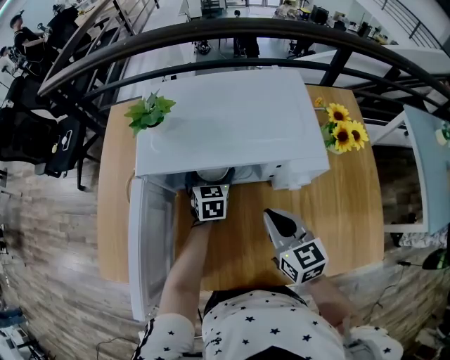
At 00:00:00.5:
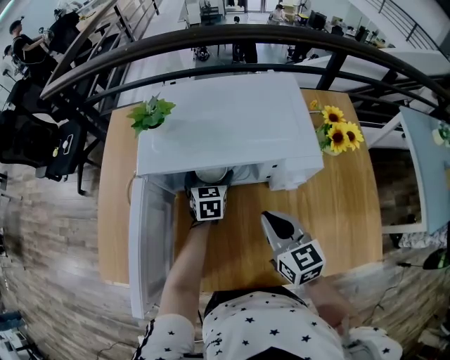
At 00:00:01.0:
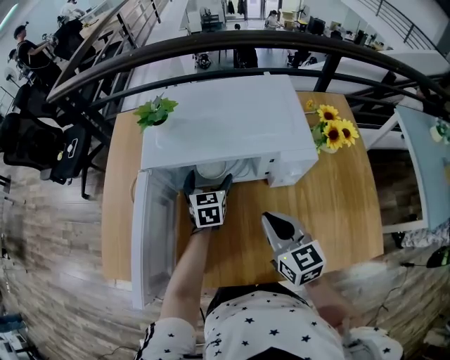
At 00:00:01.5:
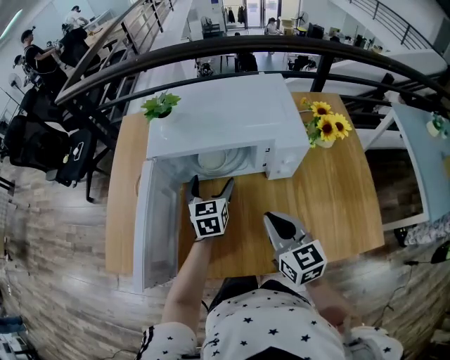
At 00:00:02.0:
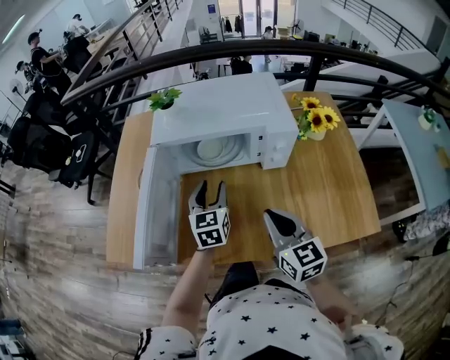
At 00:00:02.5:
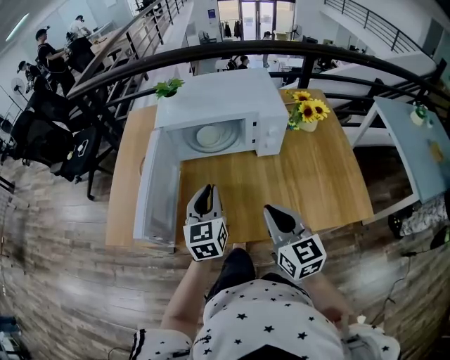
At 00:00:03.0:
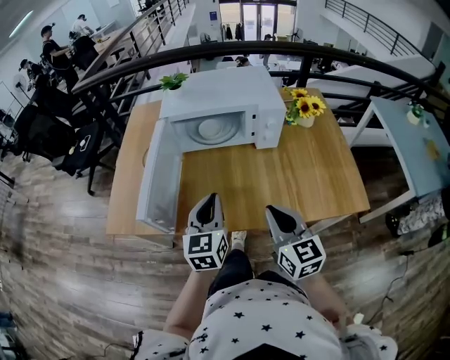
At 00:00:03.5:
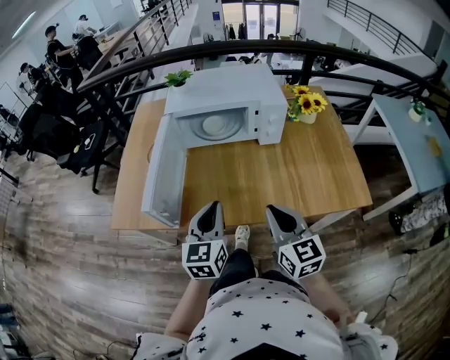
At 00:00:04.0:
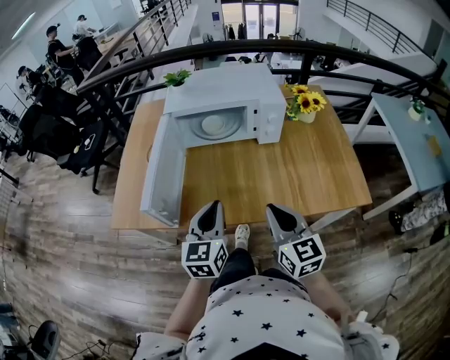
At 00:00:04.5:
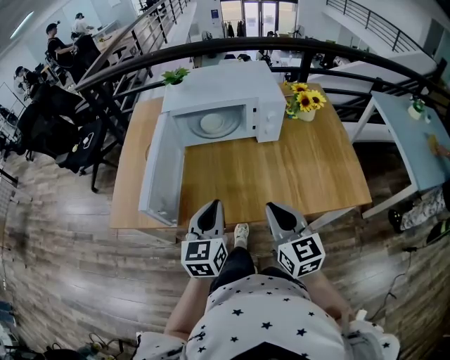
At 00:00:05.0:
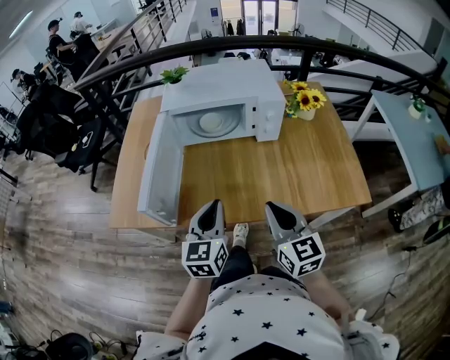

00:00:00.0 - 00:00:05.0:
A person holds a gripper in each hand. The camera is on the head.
00:00:00.0 - 00:00:02.5: The right gripper travels backward by some 20 cm, while the left gripper goes some 35 cm backward and upward, turns by approximately 20 degrees, and closes up.
00:00:02.5 - 00:00:05.0: The right gripper goes about 5 cm backward. The left gripper goes about 15 cm backward.

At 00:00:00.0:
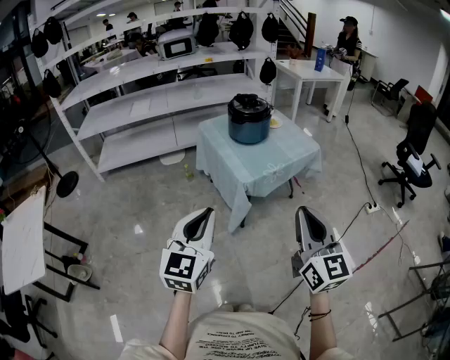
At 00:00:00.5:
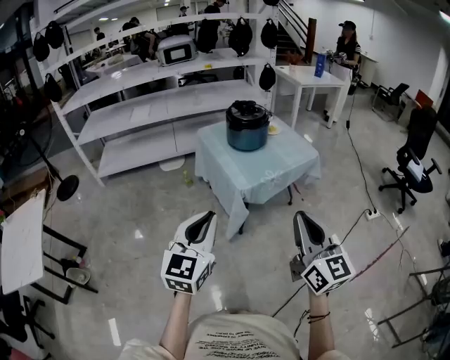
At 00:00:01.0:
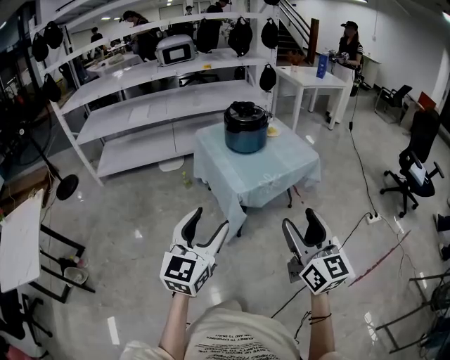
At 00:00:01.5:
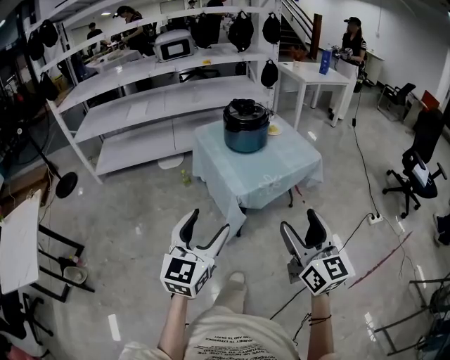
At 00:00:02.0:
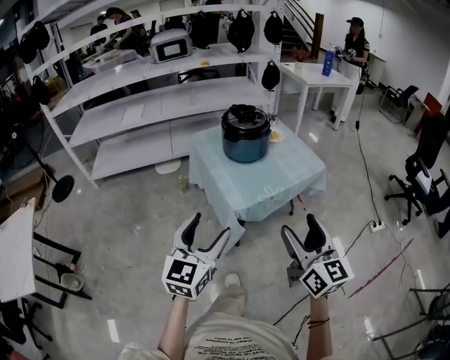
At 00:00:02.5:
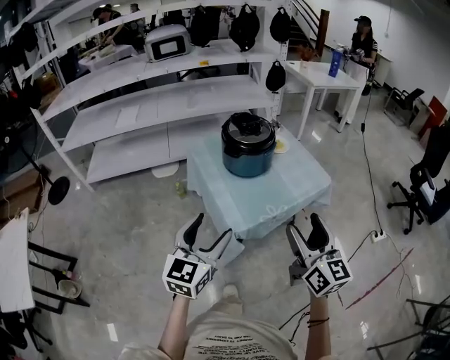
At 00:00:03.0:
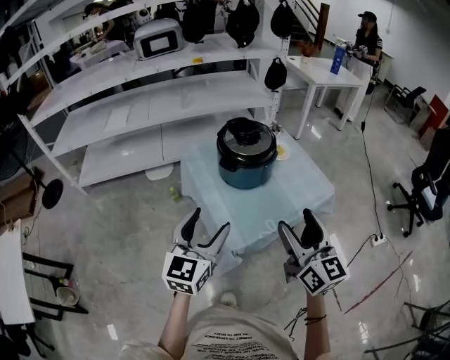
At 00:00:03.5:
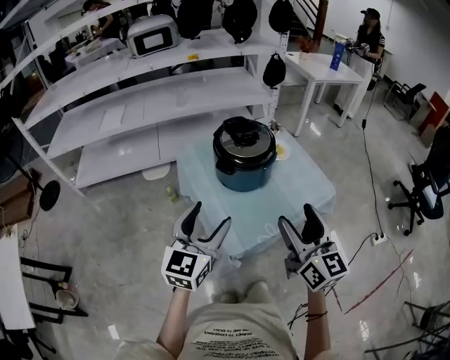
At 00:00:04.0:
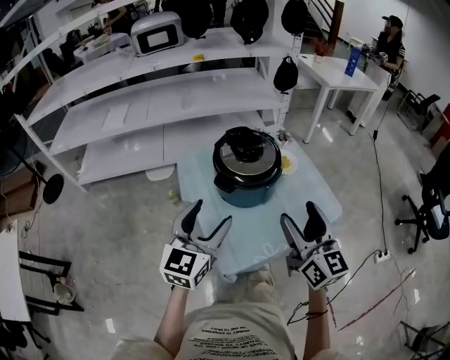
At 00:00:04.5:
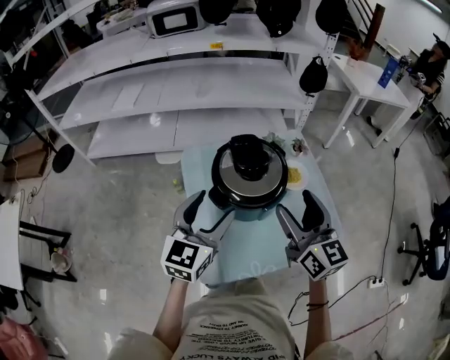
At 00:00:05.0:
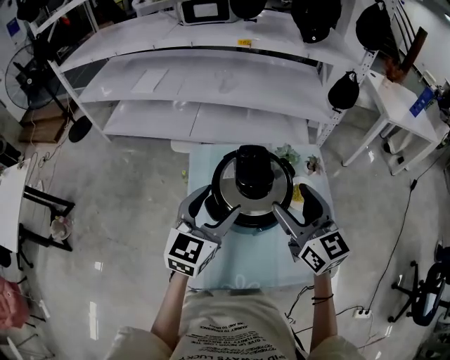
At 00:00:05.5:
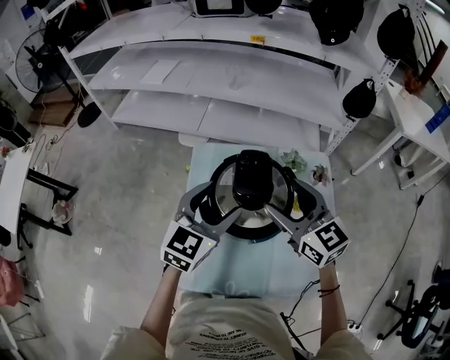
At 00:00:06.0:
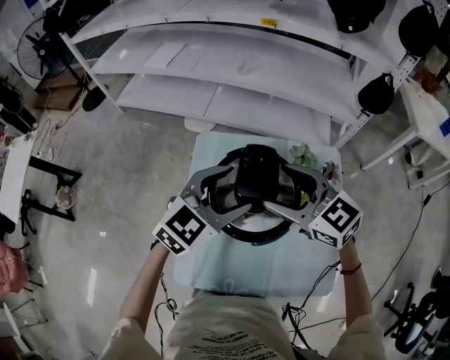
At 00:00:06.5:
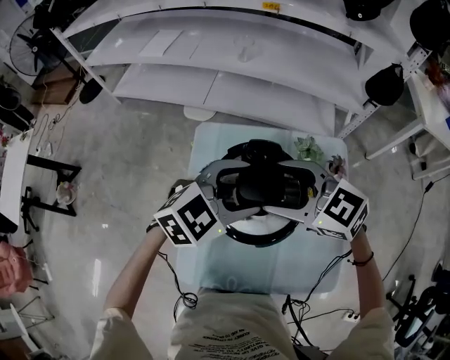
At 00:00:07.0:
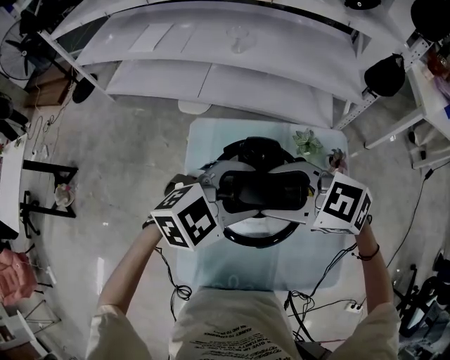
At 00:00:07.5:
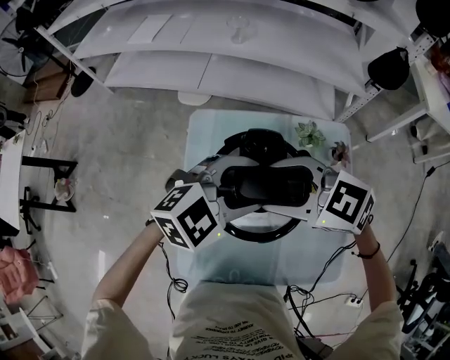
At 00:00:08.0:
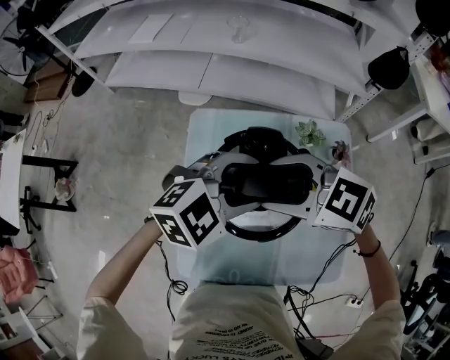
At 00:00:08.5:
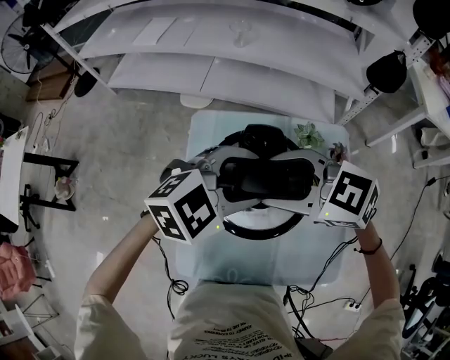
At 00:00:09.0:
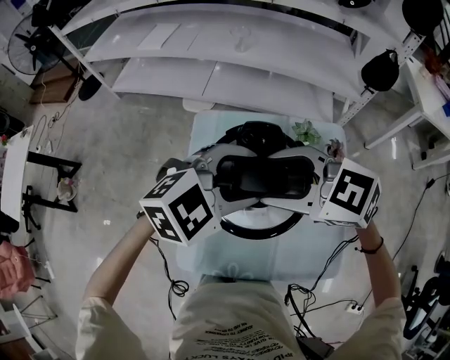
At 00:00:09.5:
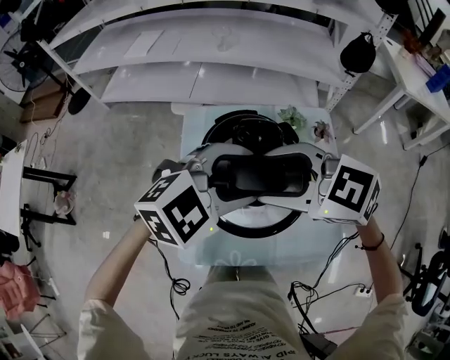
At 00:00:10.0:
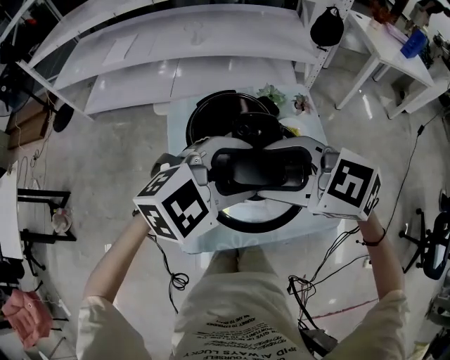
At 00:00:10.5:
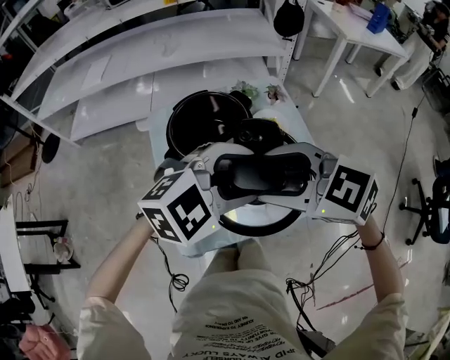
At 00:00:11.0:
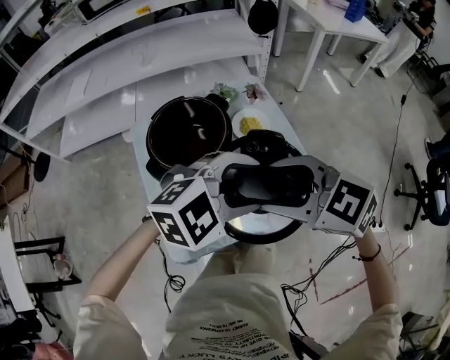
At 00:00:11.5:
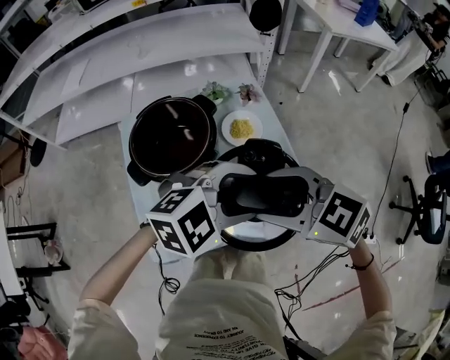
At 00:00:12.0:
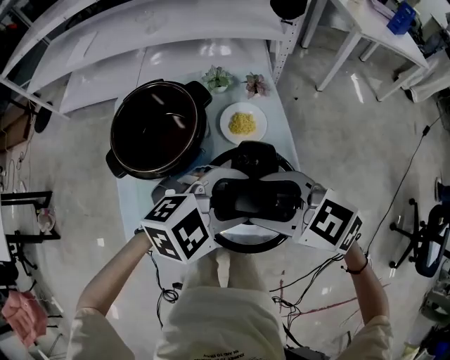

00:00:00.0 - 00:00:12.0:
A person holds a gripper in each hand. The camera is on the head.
00:00:00.0 - 00:00:02.0: The grippers both shift forward by about 15 cm. The left gripper opens up. Meanwhile the right gripper opens its fingers.
00:00:02.0 - 00:00:04.0: Both grippers move forward, roughly 35 cm.
00:00:04.0 - 00:00:06.0: The right gripper moves about 30 cm, and turns by approximately 70 degrees. The left gripper moves roughly 25 cm.
00:00:06.0 - 00:00:08.0: The left gripper rotates about 30 degrees; the right gripper turns by approximately 20 degrees.
00:00:08.0 - 00:00:10.0: The right gripper shifts by approximately 15 cm, while the left gripper changes place by some 15 cm.
00:00:10.0 - 00:00:12.0: The right gripper ends up approximately 20 cm from where it was. The left gripper ends up some 20 cm from where it was.

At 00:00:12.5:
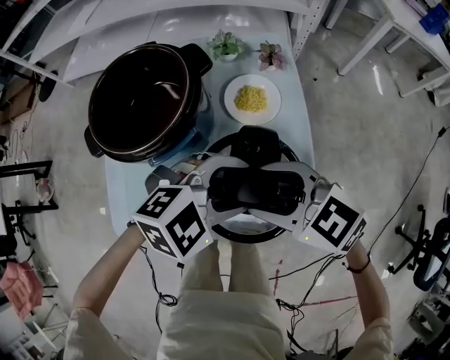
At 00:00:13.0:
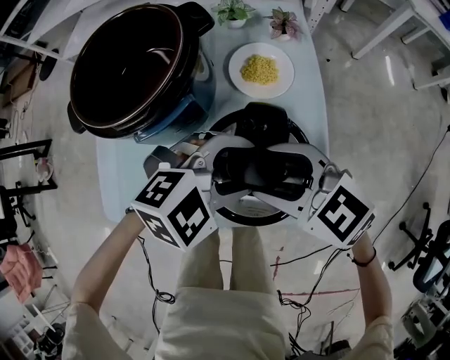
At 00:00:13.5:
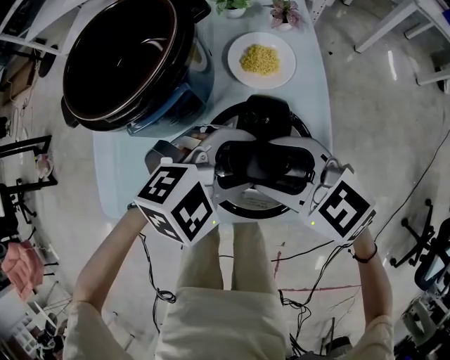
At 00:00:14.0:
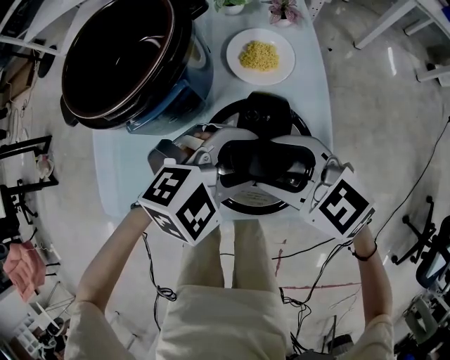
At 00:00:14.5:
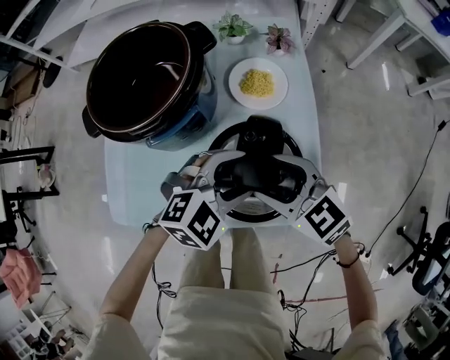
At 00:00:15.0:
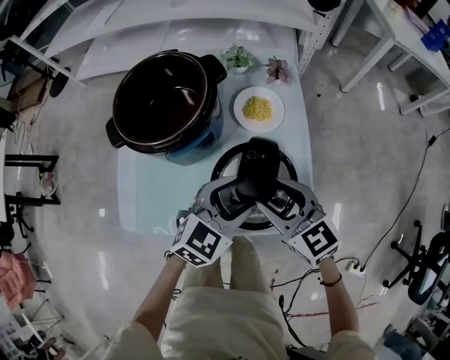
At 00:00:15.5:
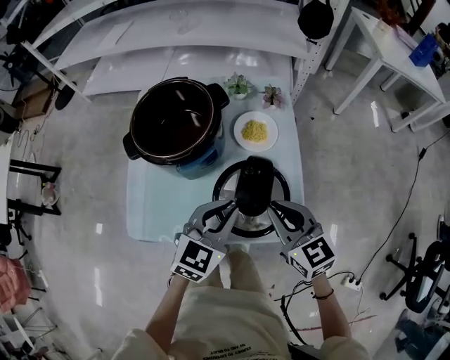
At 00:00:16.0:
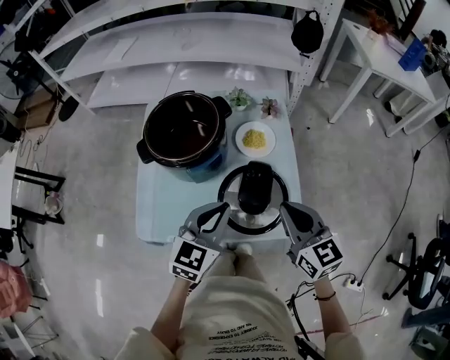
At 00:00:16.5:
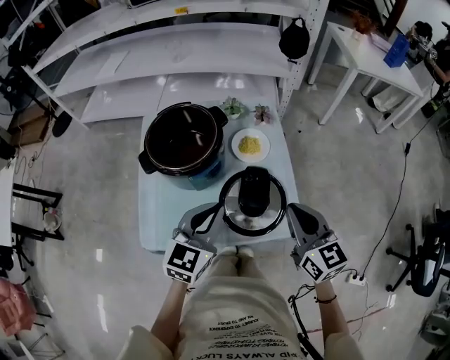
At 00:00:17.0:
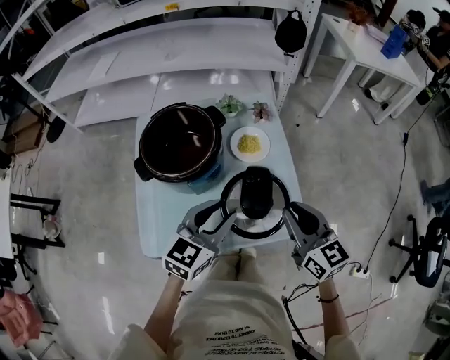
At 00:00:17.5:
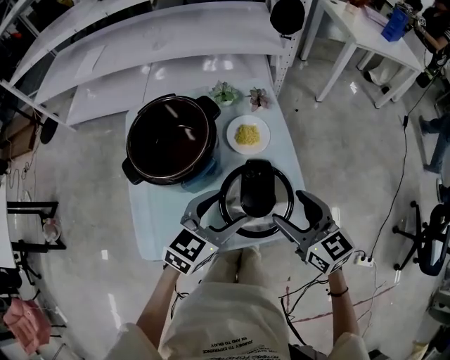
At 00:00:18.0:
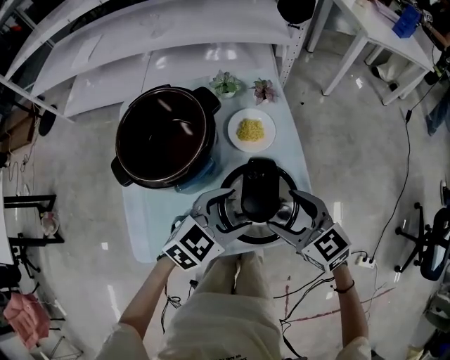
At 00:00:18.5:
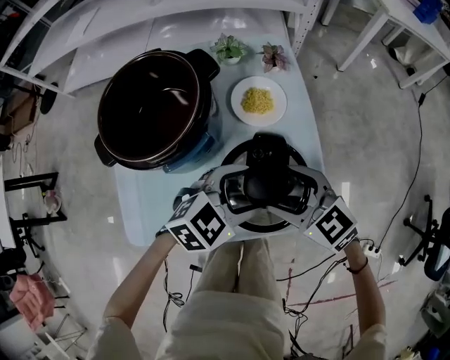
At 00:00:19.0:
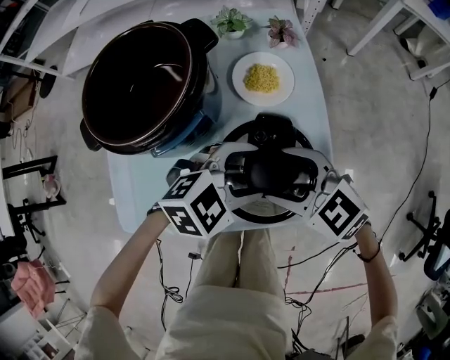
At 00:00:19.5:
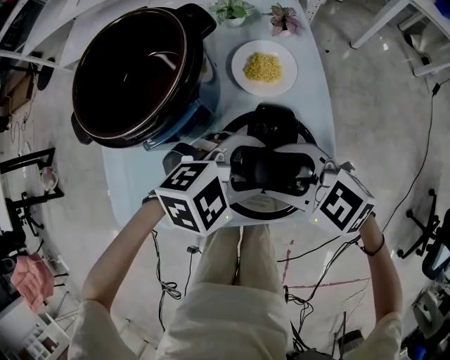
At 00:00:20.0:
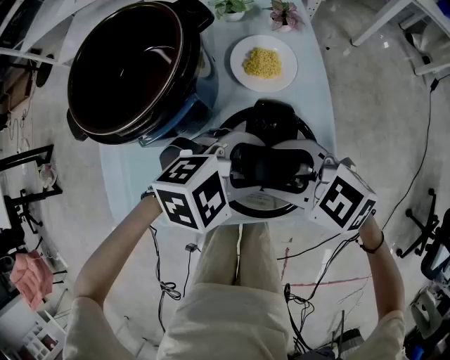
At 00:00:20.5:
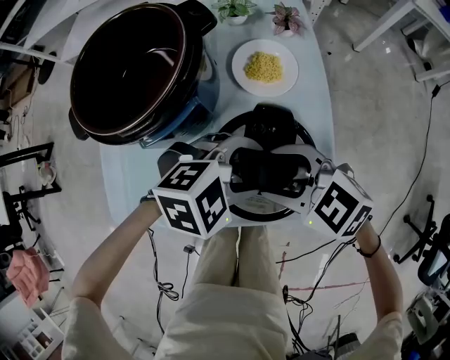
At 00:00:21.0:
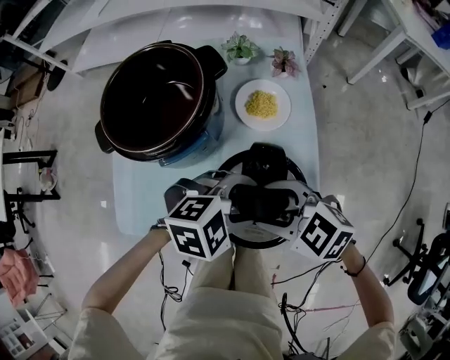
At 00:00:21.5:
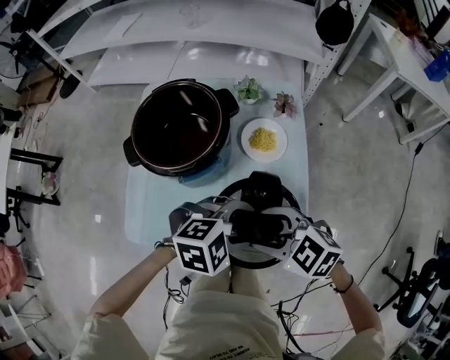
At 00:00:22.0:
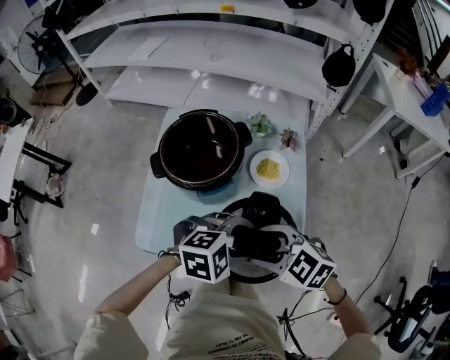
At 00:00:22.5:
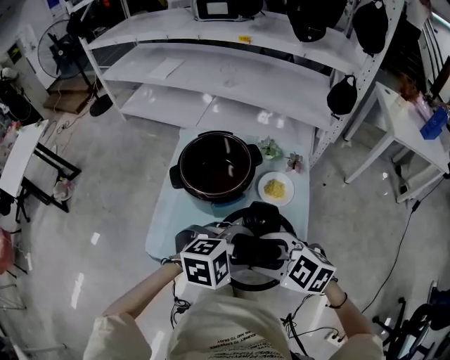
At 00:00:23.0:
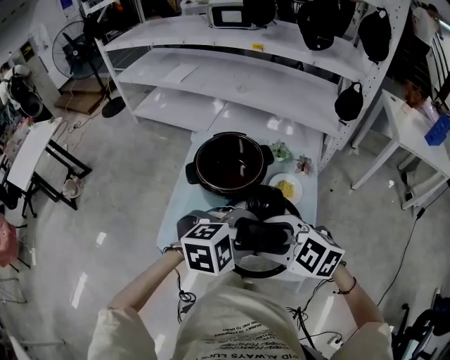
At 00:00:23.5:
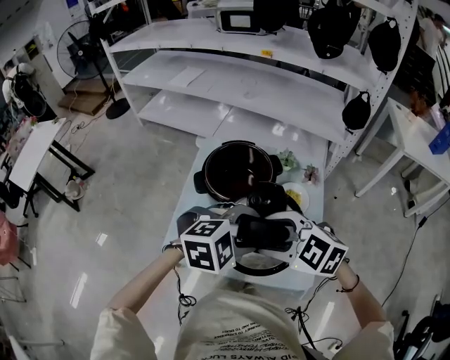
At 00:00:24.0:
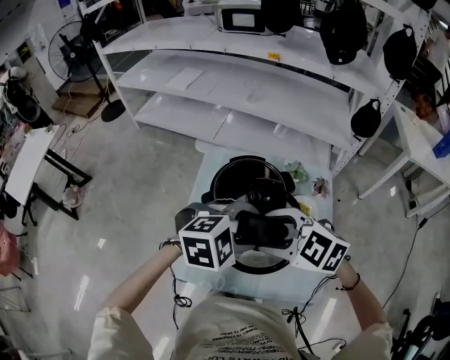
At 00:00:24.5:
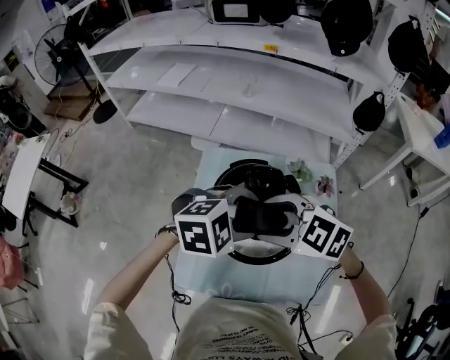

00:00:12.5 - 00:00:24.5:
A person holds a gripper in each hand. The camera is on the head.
00:00:12.5 - 00:00:14.5: Both grippers move downward, roughly 5 cm.
00:00:14.5 - 00:00:16.5: The left gripper is displaced upward and to the left by about 20 cm, rotates approximately 40 degrees, and closes; the right gripper moves upward, approximately 15 cm, changes its angle by some 40 degrees, and closes.
00:00:16.5 - 00:00:18.5: The grippers both shift downward by approximately 15 cm. The right gripper turns by some 40 degrees, and opens; the left gripper changes its angle by some 40 degrees, and opens up.
00:00:18.5 - 00:00:20.5: The right gripper rotates some 20 degrees.
00:00:20.5 - 00:00:22.5: Both grippers move upward, some 15 cm.
00:00:22.5 - 00:00:24.5: The left gripper changes place by about 25 cm. The right gripper changes place by some 20 cm.
